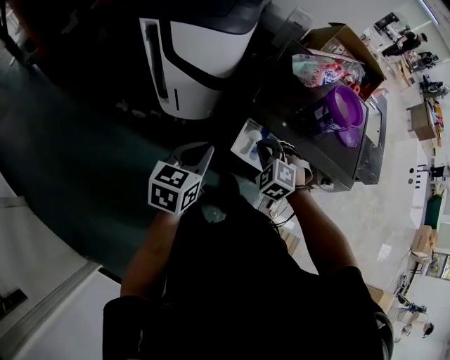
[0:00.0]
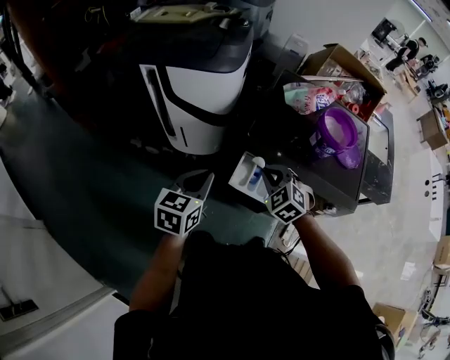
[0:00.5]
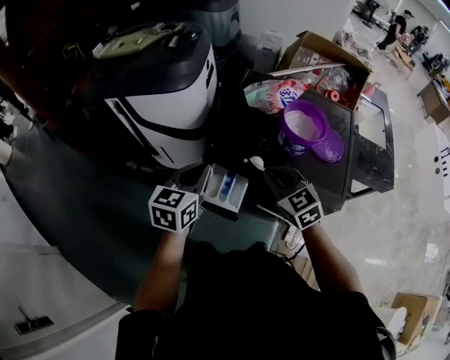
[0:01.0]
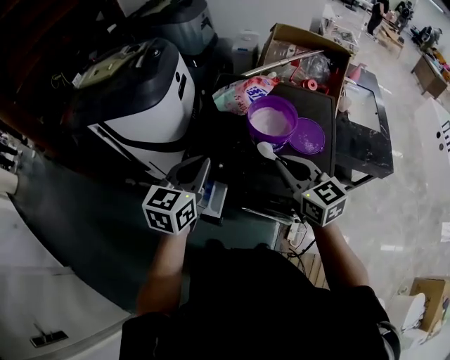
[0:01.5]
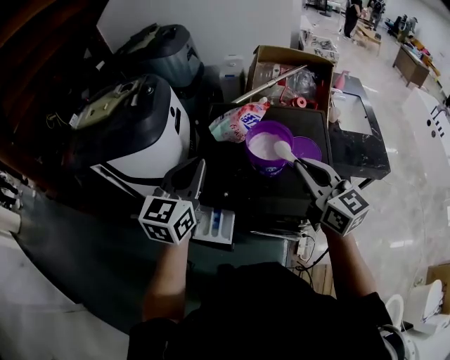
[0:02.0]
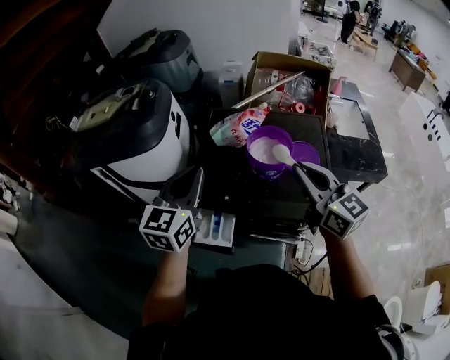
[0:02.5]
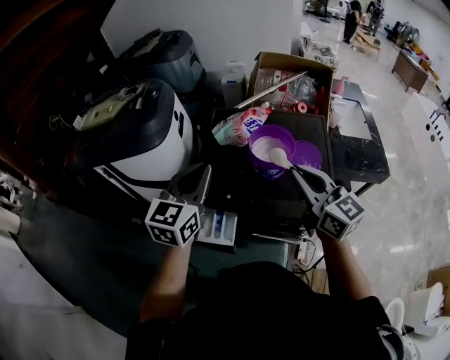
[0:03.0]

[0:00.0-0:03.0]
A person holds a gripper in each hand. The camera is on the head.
0:00.0 to 0:01.5: The right gripper shifts some 35 cm to the right and upward, and rotates around the line of its fingers by some 60 degrees, clockwise from behind, while the left gripper goes some 30 cm to the right, upward and forward.
0:01.5 to 0:03.0: The grippers both shift upward by roughly 10 cm.

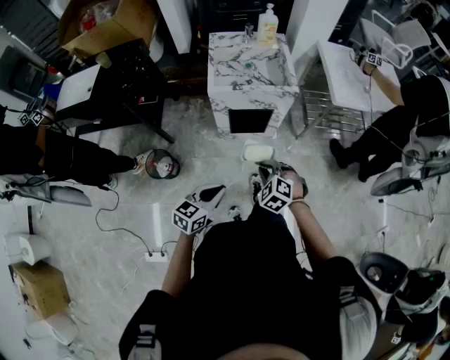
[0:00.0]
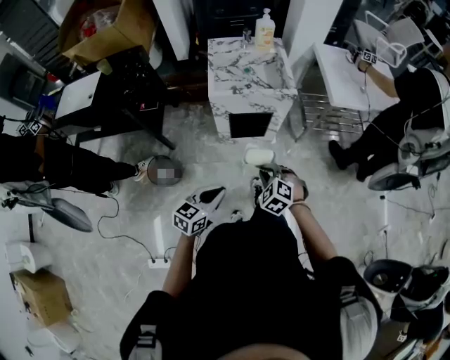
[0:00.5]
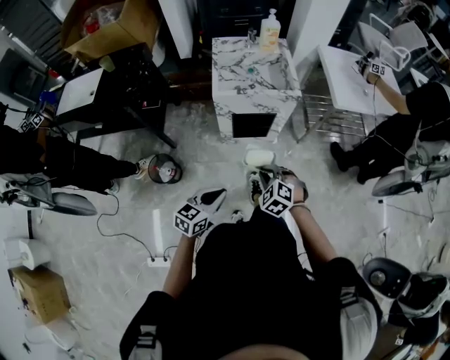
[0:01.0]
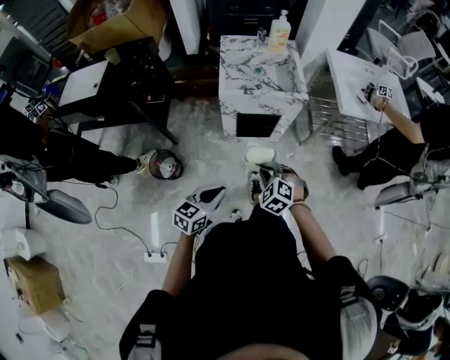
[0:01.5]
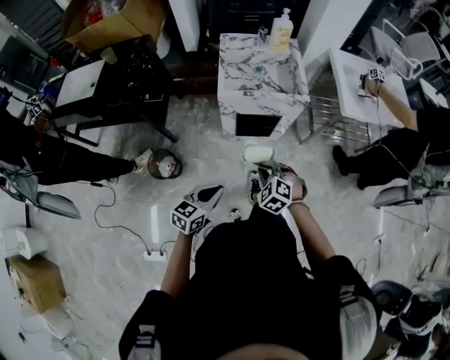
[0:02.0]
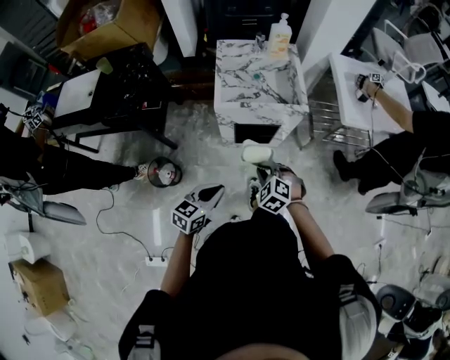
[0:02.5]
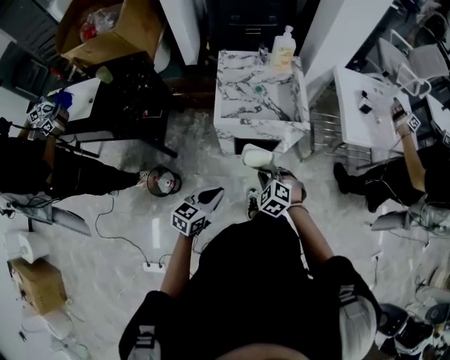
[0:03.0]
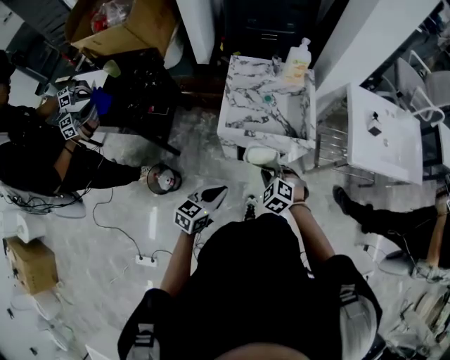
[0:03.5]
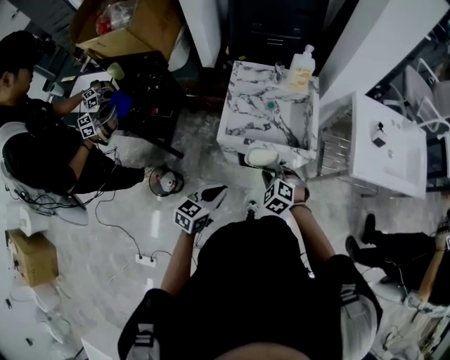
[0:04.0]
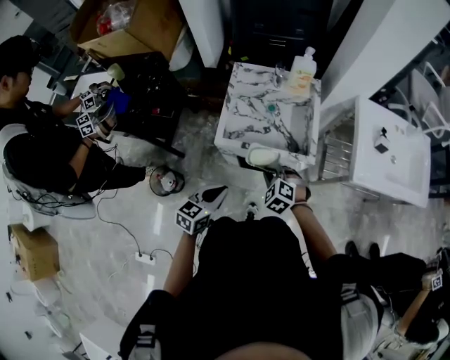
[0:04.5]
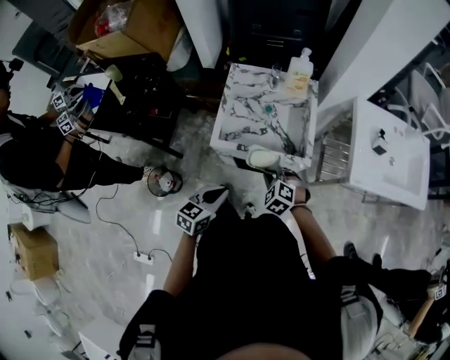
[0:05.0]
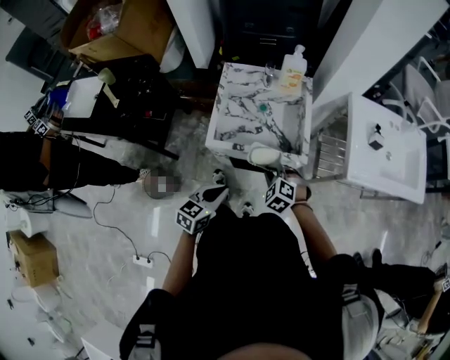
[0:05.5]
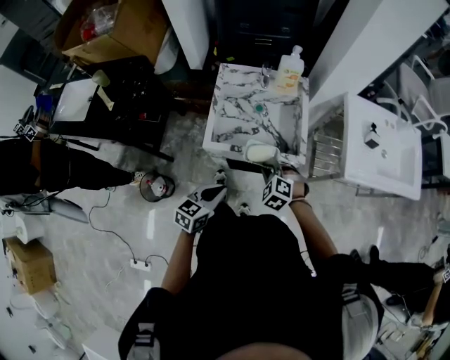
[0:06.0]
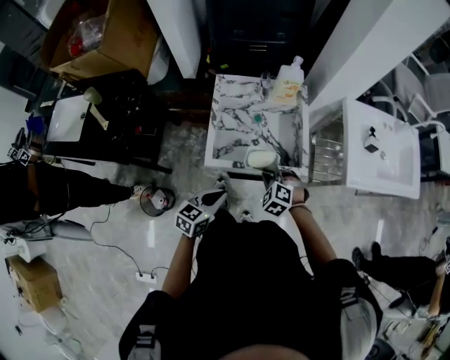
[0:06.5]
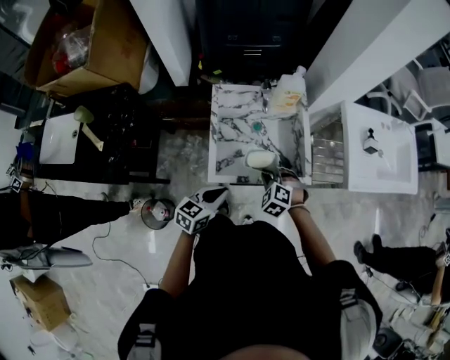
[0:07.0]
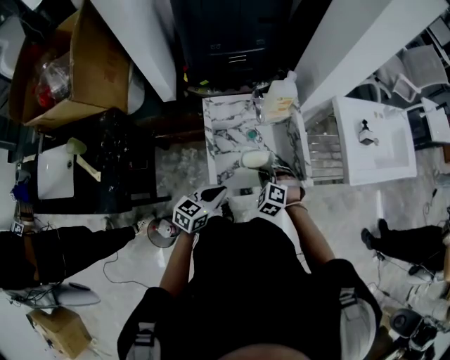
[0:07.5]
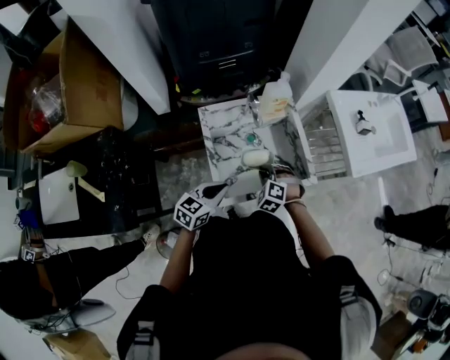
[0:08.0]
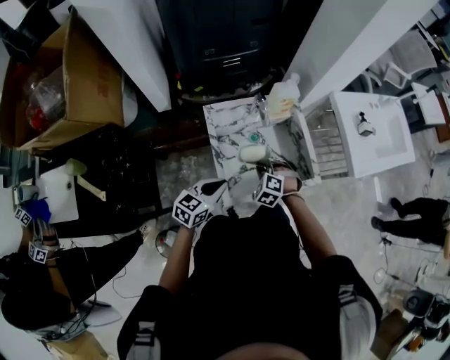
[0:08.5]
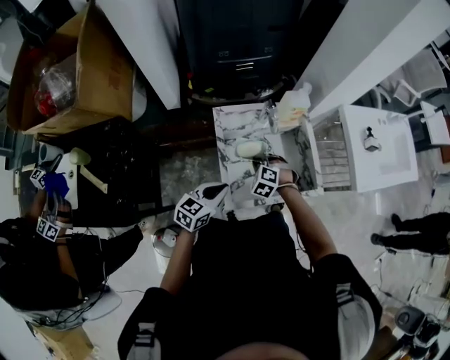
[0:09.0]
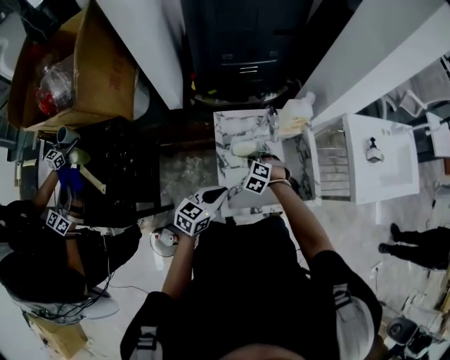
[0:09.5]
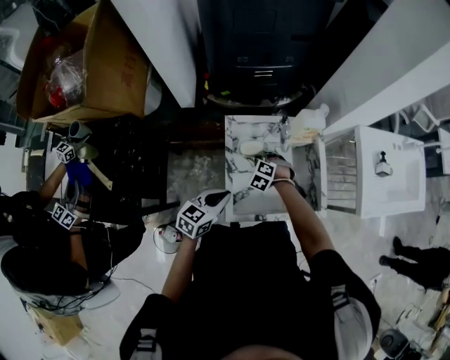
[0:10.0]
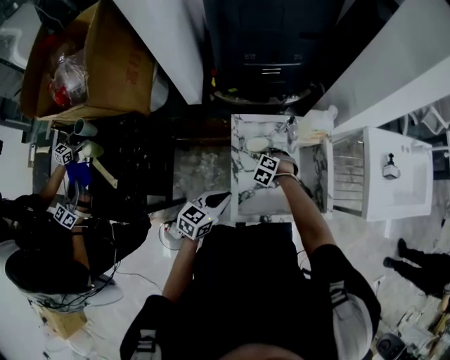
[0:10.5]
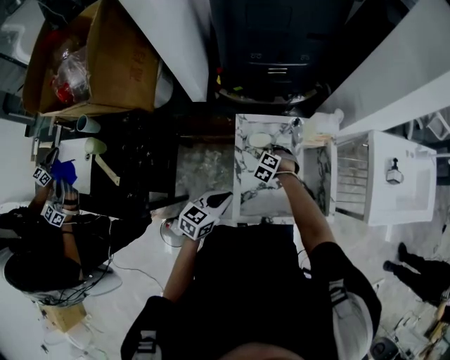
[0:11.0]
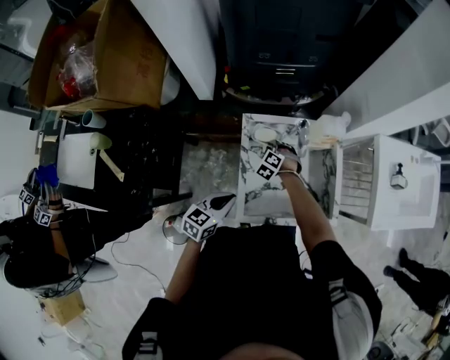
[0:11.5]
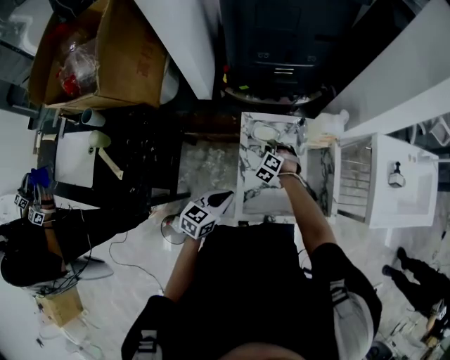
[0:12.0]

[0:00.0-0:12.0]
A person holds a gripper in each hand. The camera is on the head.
0:00.0 to 0:02.0: The right gripper changes place by about 5 cm; the left gripper ends up approximately 5 cm from where it was.
0:02.0 to 0:04.0: Both grippers move forward, about 25 cm.
0:04.0 to 0:06.0: The right gripper heads forward, covering about 5 cm. The left gripper shifts by some 5 cm.
0:06.0 to 0:08.0: The right gripper changes place by approximately 20 cm. The left gripper moves approximately 25 cm, and rotates roughly 20 degrees.
0:08.0 to 0:10.0: The right gripper travels to the left, forward and downward by approximately 20 cm; the left gripper goes approximately 5 cm to the left.
0:10.0 to 0:12.0: The right gripper changes place by roughly 5 cm.

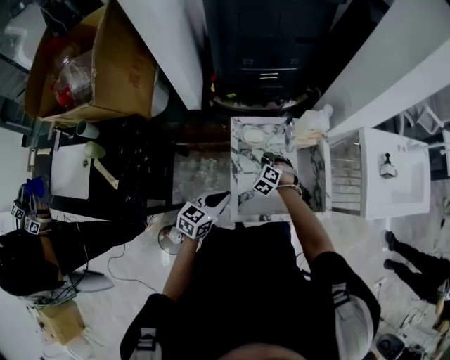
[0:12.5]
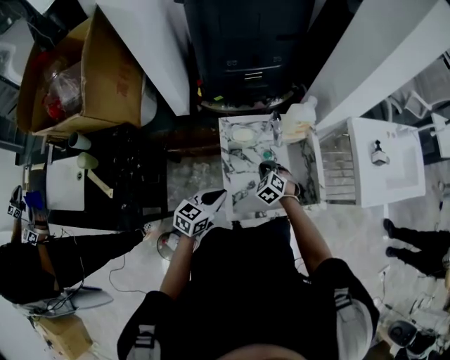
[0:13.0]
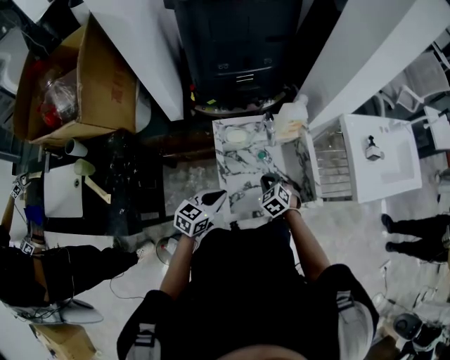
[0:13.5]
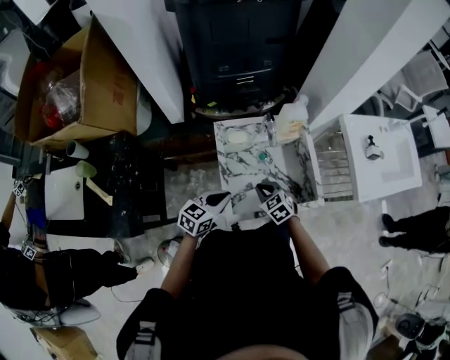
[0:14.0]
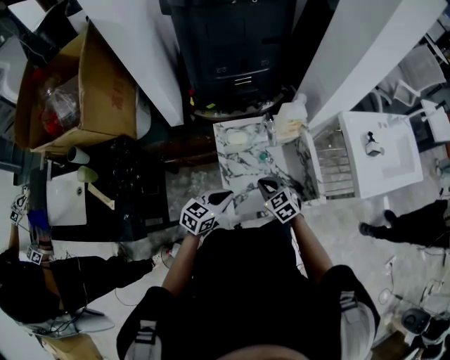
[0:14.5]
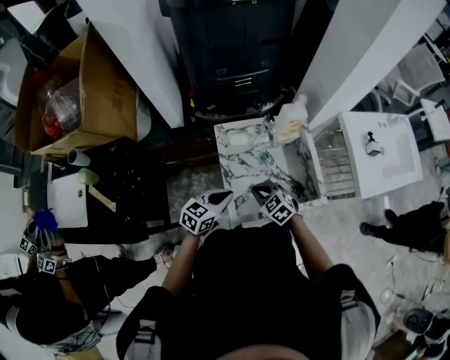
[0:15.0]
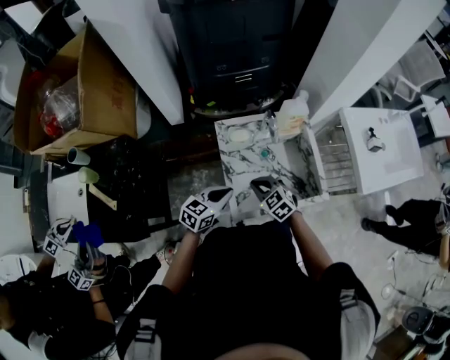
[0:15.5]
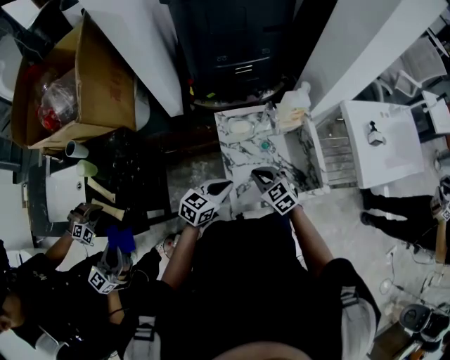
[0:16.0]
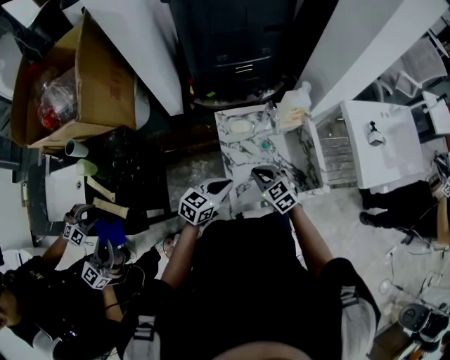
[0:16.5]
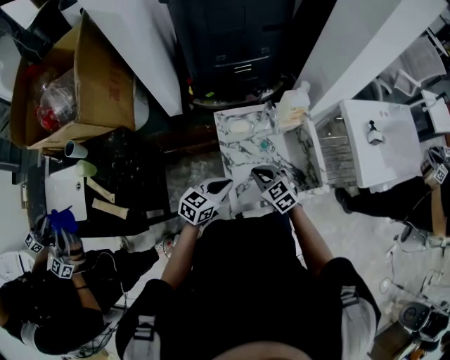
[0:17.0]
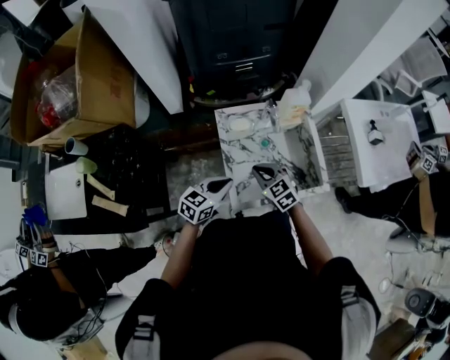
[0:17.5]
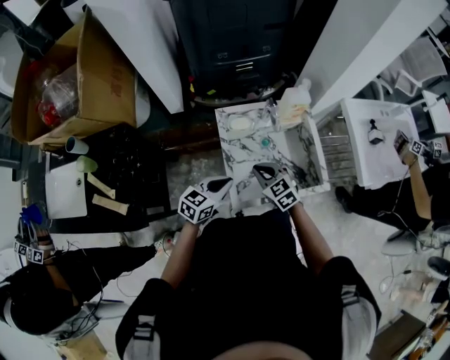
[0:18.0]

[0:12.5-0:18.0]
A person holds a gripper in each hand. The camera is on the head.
0:12.5 to 0:14.5: The right gripper heads backward and upward, covering about 15 cm, and swivels some 40 degrees.
0:14.5 to 0:16.0: The grippers stay close to where they were, moving slightly.
0:16.0 to 0:18.0: Neither gripper changes place.

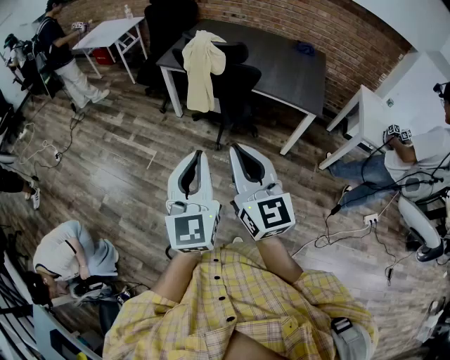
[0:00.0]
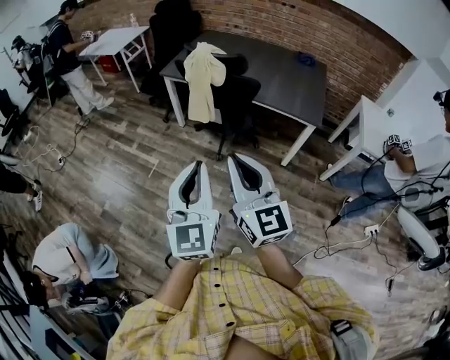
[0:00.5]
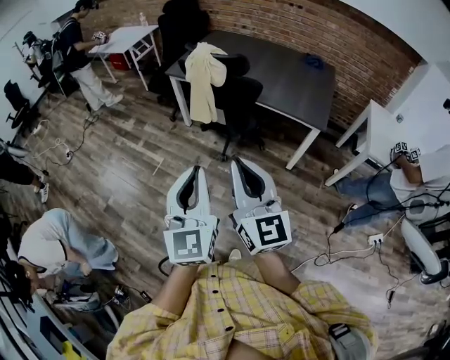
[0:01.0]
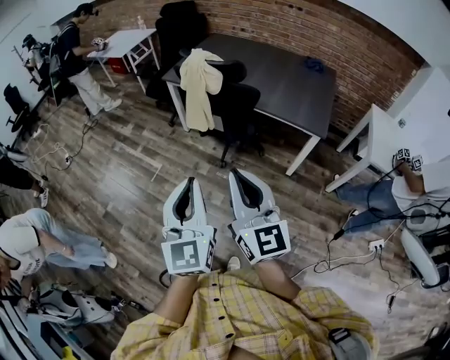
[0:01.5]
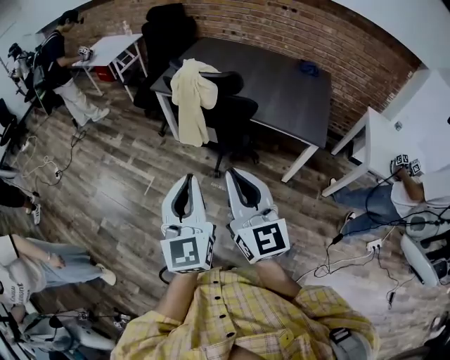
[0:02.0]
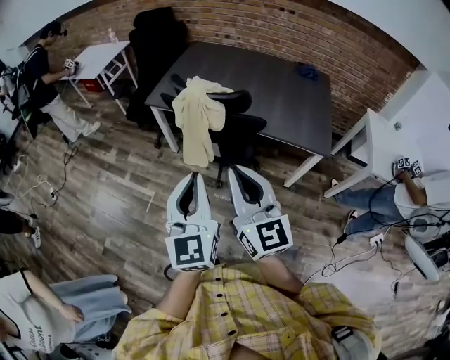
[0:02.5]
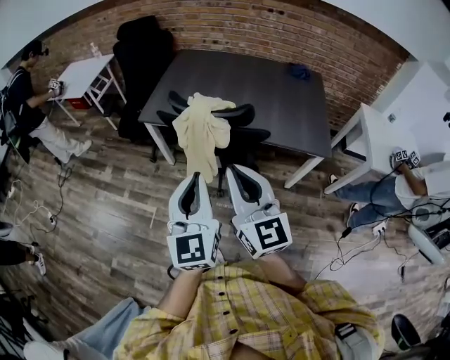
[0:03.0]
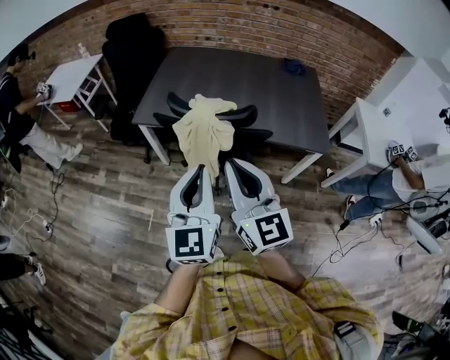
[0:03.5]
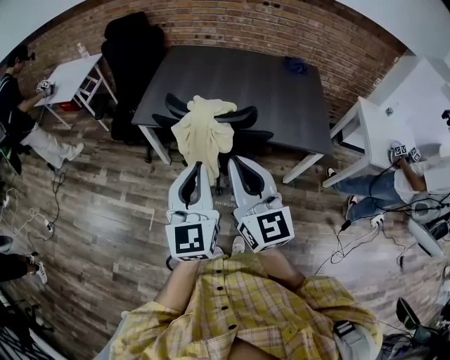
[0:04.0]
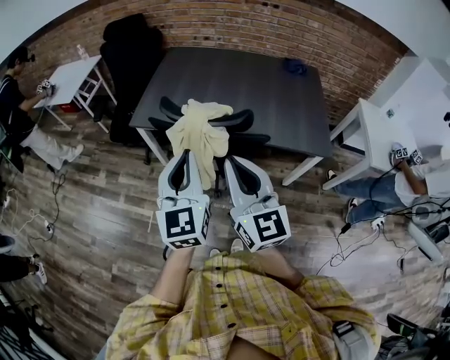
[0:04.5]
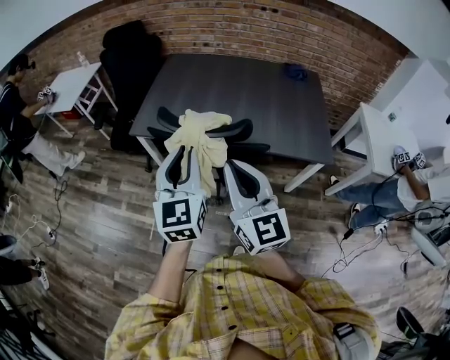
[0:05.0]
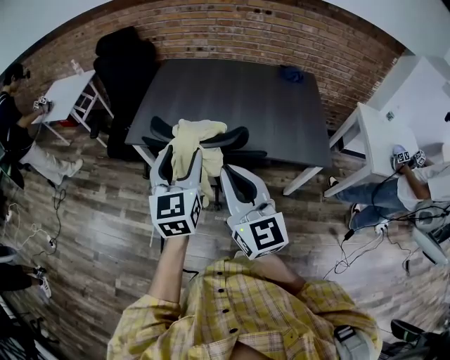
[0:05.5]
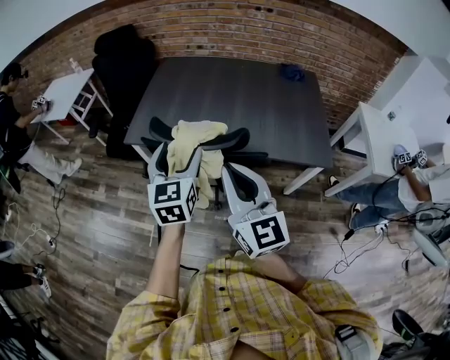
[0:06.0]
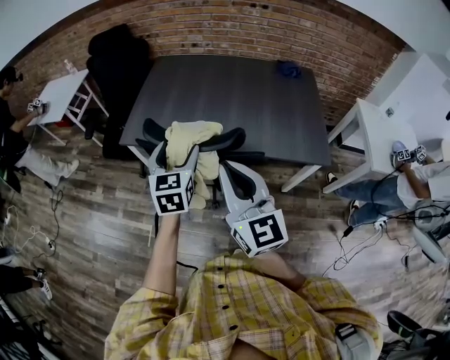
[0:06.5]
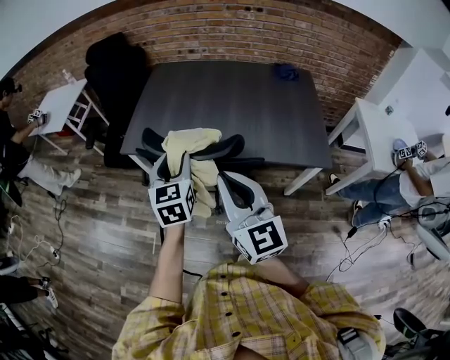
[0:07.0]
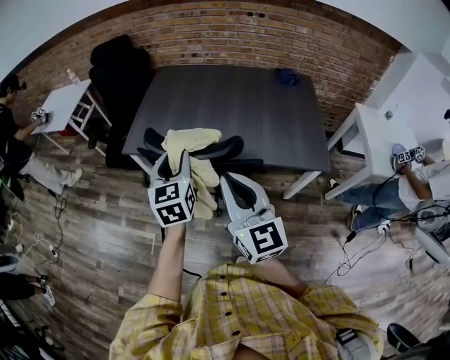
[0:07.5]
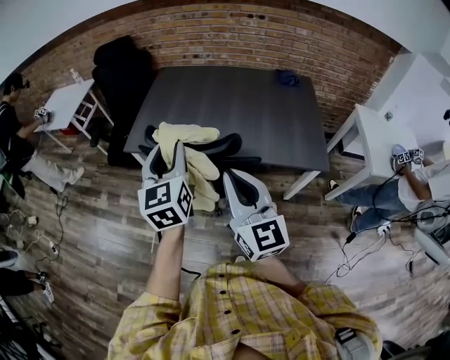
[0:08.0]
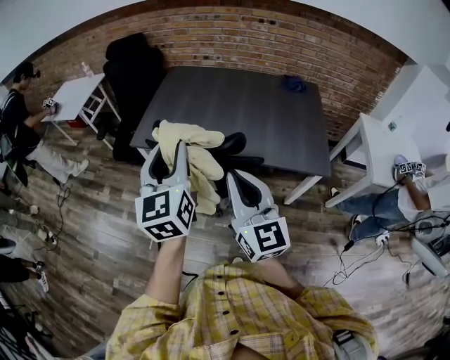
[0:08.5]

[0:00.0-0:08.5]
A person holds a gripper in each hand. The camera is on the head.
0:00.0 to 0:02.0: The grippers both shift forward and to the right by about 15 cm.
0:02.0 to 0:04.0: Both grippers move forward, roughly 25 cm.
0:04.0 to 0:06.5: The right gripper shifts approximately 10 cm forward. The left gripper moves forward and downward, approximately 20 cm, and opens.
0:06.5 to 0:08.5: The right gripper shifts by some 5 cm. Meanwhile the left gripper shifts approximately 15 cm upward and backward, turns by some 20 degrees, and closes its fingers.
